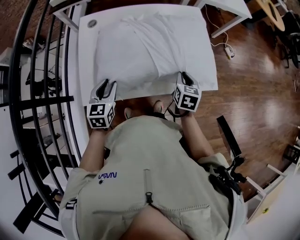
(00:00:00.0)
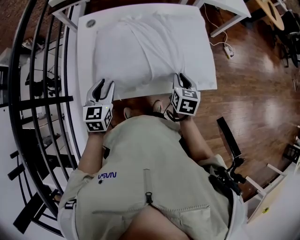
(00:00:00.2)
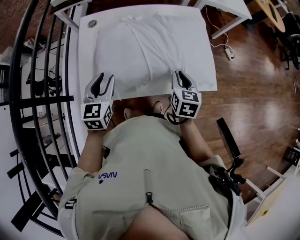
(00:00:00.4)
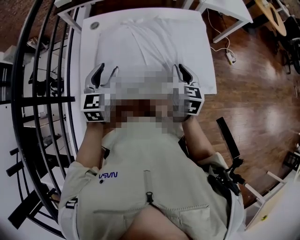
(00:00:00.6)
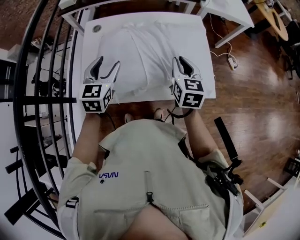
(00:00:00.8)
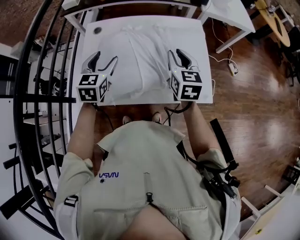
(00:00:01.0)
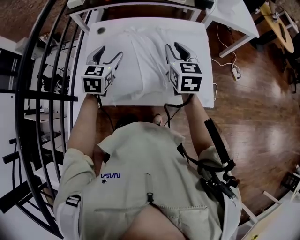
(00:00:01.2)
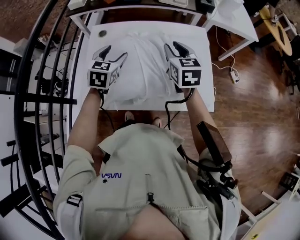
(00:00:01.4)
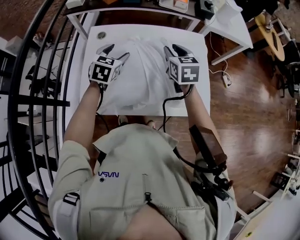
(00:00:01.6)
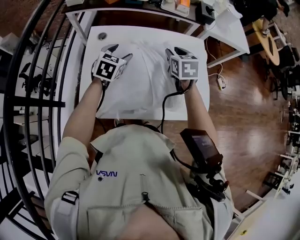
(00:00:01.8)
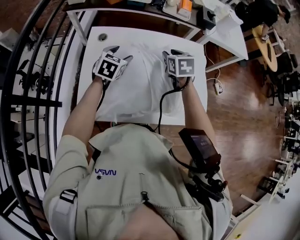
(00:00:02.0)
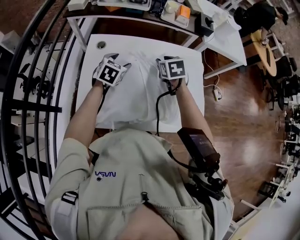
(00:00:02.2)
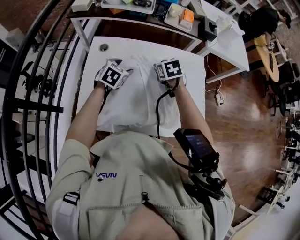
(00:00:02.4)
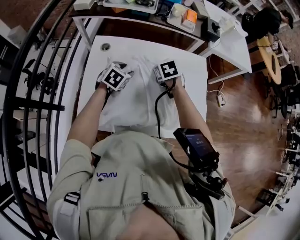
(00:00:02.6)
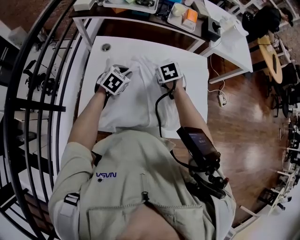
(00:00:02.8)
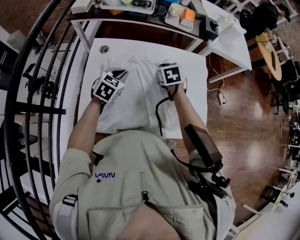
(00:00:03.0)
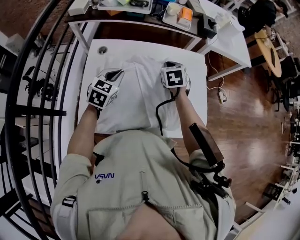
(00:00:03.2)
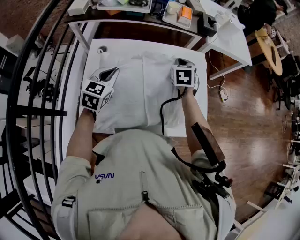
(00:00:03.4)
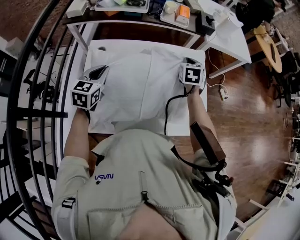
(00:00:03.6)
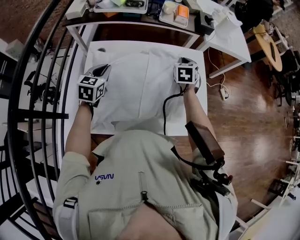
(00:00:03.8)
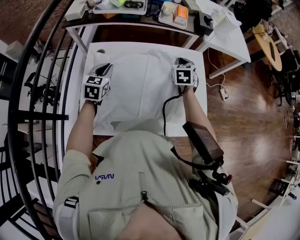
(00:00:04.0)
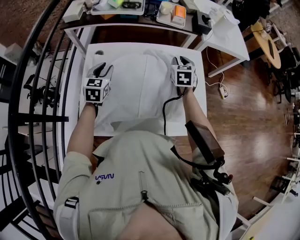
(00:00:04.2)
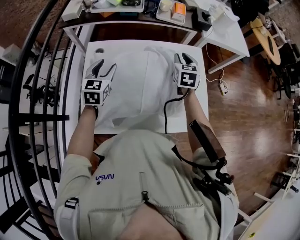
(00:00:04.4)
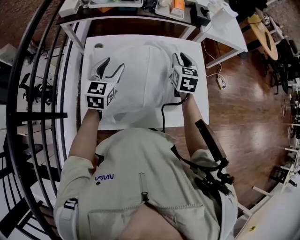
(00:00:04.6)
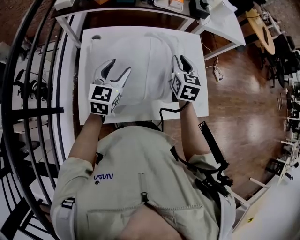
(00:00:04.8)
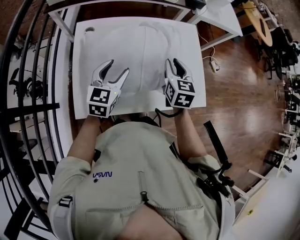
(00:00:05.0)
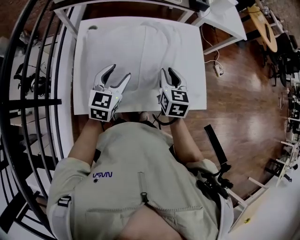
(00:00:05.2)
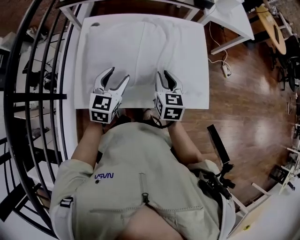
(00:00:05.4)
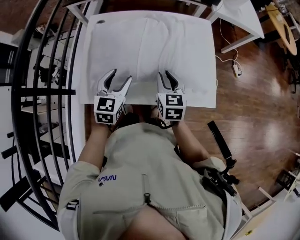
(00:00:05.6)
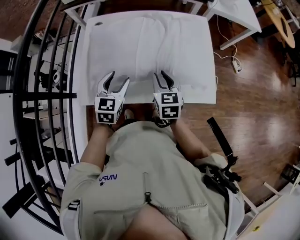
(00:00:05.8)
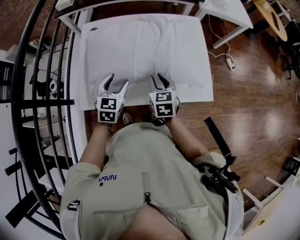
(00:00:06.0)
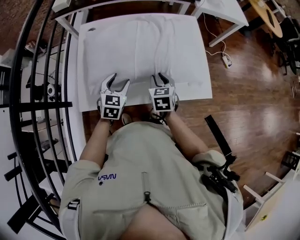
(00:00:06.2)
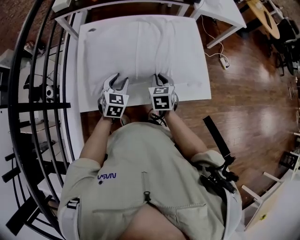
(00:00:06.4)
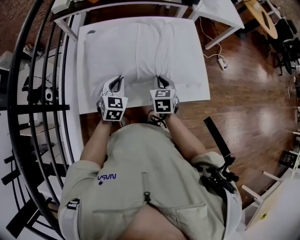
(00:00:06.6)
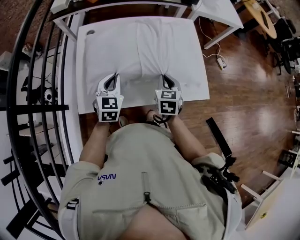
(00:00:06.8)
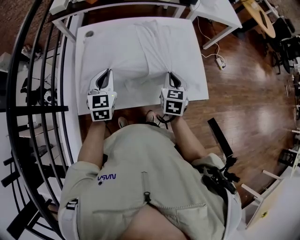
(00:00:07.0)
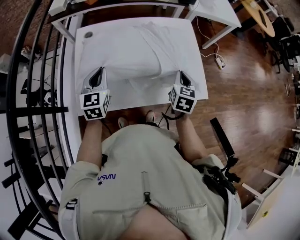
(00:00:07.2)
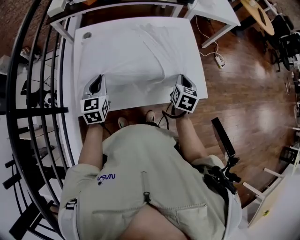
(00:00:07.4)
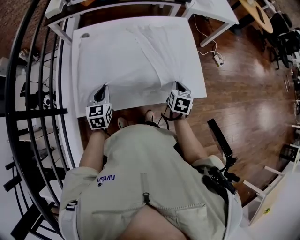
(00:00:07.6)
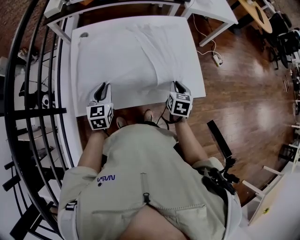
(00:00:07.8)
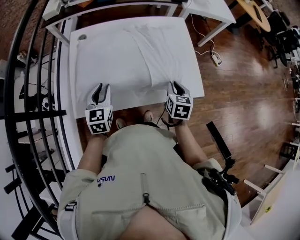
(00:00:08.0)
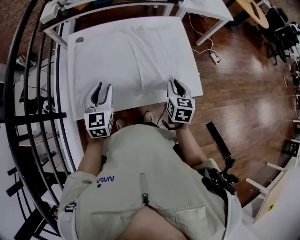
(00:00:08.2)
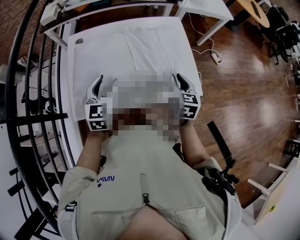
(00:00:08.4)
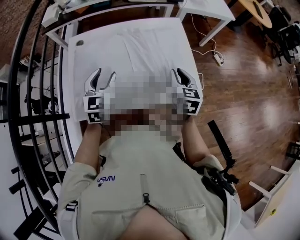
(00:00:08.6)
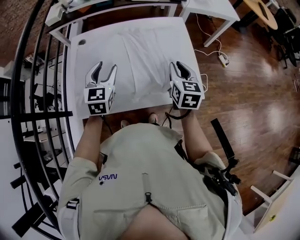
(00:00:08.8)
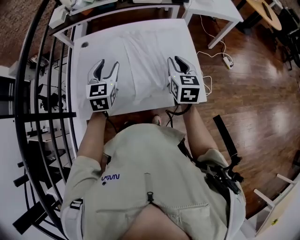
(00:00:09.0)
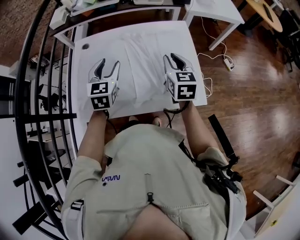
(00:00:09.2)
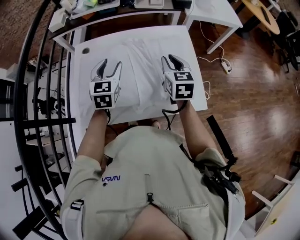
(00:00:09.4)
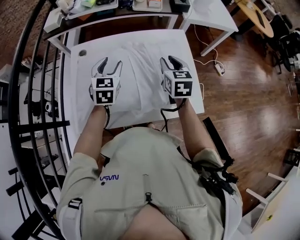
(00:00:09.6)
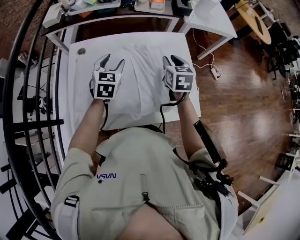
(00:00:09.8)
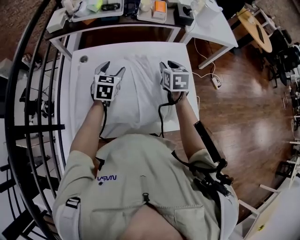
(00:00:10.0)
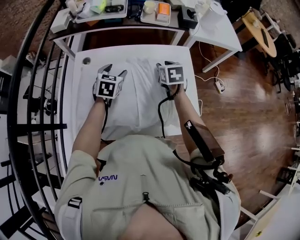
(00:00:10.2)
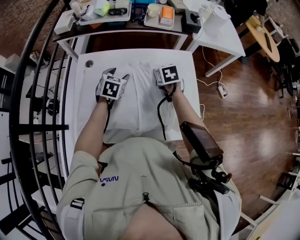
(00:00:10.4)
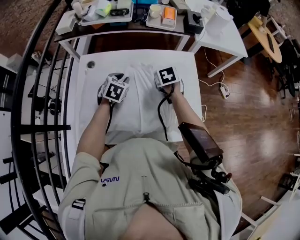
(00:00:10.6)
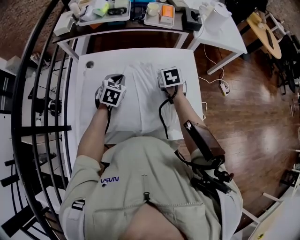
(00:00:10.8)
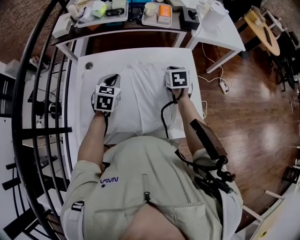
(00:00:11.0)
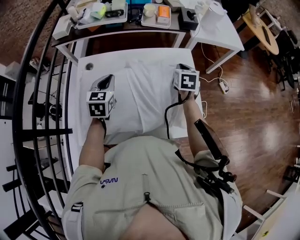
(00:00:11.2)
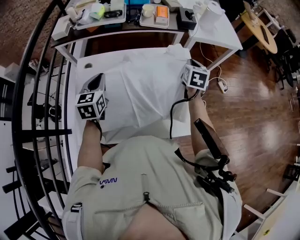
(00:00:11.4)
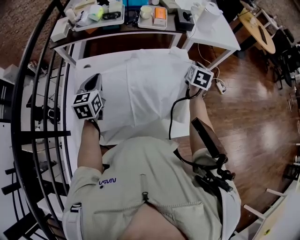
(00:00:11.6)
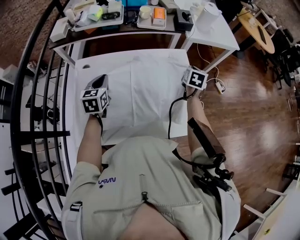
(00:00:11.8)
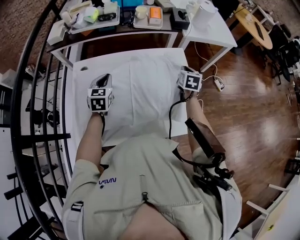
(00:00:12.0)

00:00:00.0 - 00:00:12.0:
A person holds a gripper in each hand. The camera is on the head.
00:00:00.0 - 00:00:01.6: The left gripper moves forward and upward, roughly 20 cm, and opens its fingers. The right gripper heads forward, upward and to the left, covering some 25 cm, and turns by roughly 30 degrees.
00:00:01.6 - 00:00:03.0: The right gripper goes roughly 10 cm downward and forward, rotates roughly 20 degrees, and closes up, while the left gripper closes its fingers.
00:00:03.0 - 00:00:04.4: The left gripper heads to the left and upward, covering some 10 cm, turns by approximately 20 degrees, and opens up; the right gripper heads to the right and upward, covering some 10 cm, turns by approximately 30 degrees, and opens up.
00:00:04.4 - 00:00:06.0: The left gripper shifts roughly 20 cm backward, to the right and downward; the right gripper heads backward, covering approximately 25 cm.
00:00:06.0 - 00:00:07.6: The right gripper shifts about 15 cm to the right, changes its angle by about 30 degrees, and closes, while the left gripper heads to the left, covering approximately 5 cm, moves roughly 5 cm upward and comes back, and closes.
00:00:07.6 - 00:00:09.0: The left gripper moves upward, forward and to the right, about 20 cm, and opens up. Meanwhile the right gripper heads upward and forward, covering roughly 15 cm, and rotates roughly 30 degrees.
00:00:09.0 - 00:00:10.4: The left gripper heads forward and downward, covering about 15 cm, and turns by roughly 20 degrees. Meanwhile the right gripper shifts roughly 20 cm forward, to the left and downward, and changes its angle by roughly 30 degrees.
00:00:10.4 - 00:00:12.0: The right gripper travels to the right by approximately 20 cm, turns by about 30 degrees, and closes. The left gripper travels upward and back again, roughly 10 cm each way, and closes its fingers.

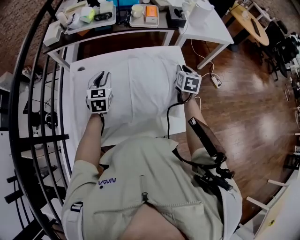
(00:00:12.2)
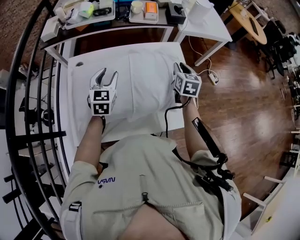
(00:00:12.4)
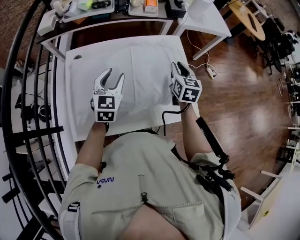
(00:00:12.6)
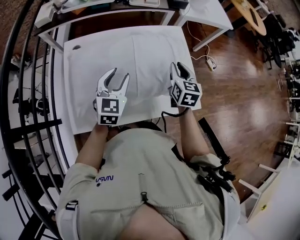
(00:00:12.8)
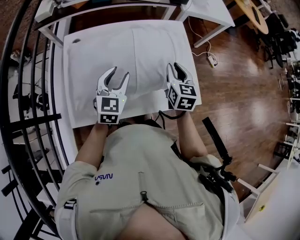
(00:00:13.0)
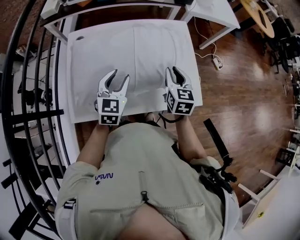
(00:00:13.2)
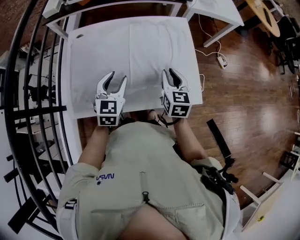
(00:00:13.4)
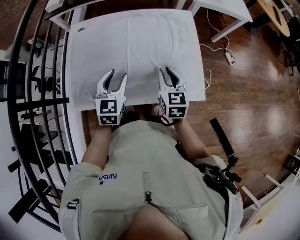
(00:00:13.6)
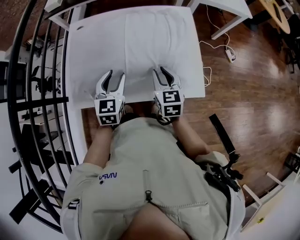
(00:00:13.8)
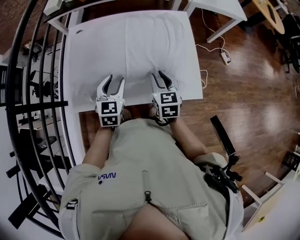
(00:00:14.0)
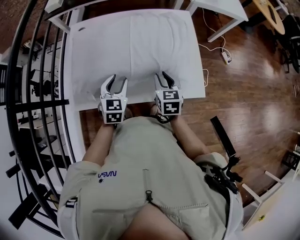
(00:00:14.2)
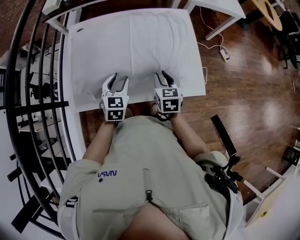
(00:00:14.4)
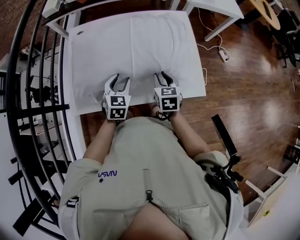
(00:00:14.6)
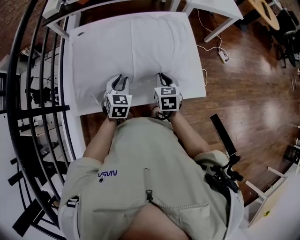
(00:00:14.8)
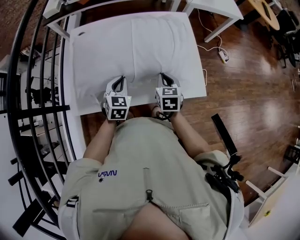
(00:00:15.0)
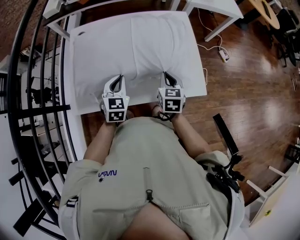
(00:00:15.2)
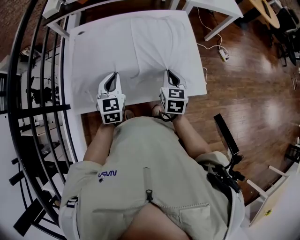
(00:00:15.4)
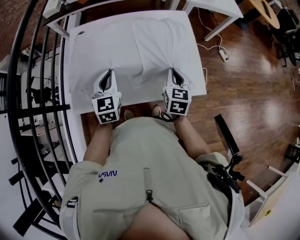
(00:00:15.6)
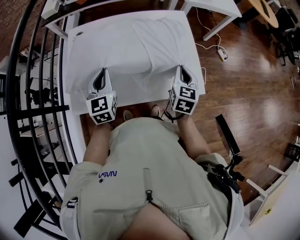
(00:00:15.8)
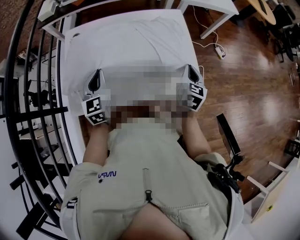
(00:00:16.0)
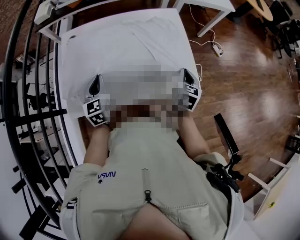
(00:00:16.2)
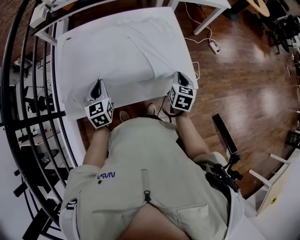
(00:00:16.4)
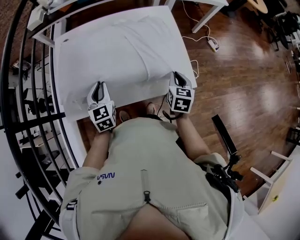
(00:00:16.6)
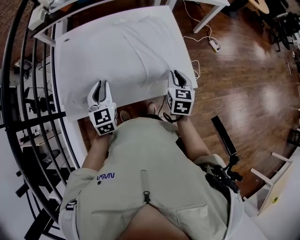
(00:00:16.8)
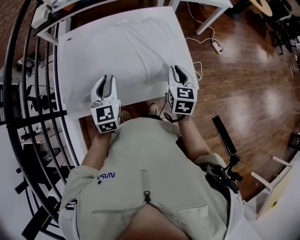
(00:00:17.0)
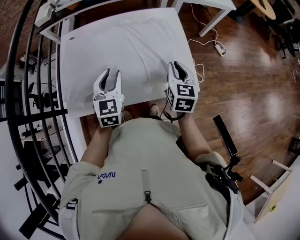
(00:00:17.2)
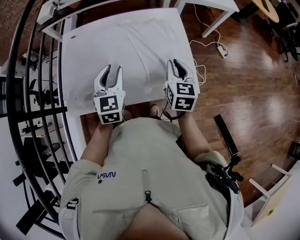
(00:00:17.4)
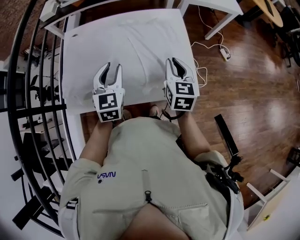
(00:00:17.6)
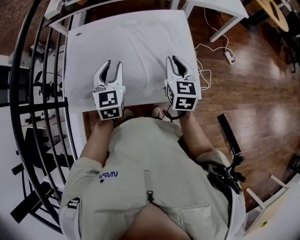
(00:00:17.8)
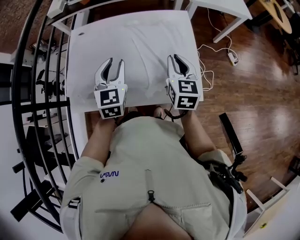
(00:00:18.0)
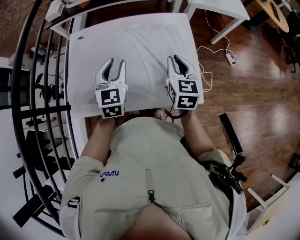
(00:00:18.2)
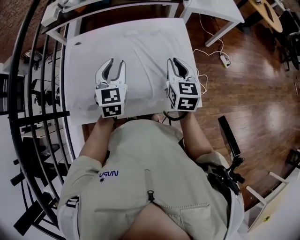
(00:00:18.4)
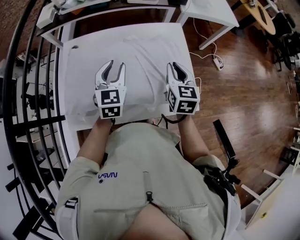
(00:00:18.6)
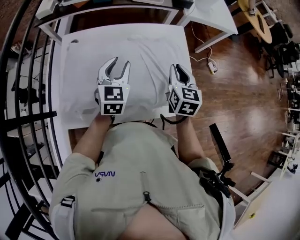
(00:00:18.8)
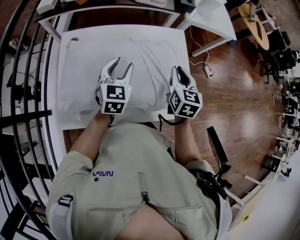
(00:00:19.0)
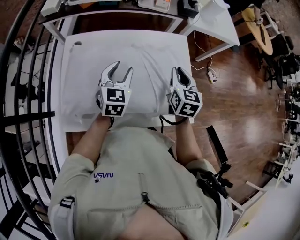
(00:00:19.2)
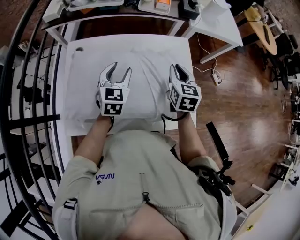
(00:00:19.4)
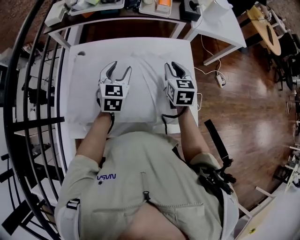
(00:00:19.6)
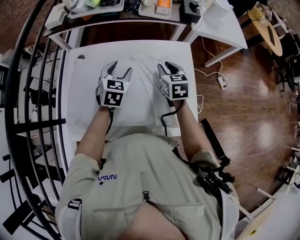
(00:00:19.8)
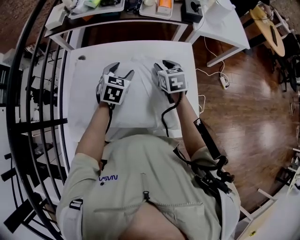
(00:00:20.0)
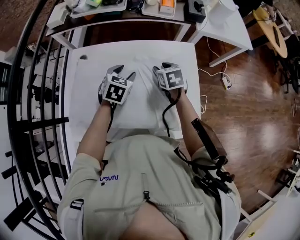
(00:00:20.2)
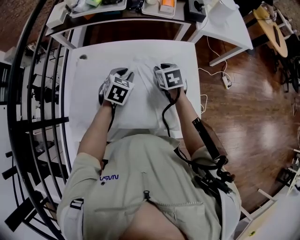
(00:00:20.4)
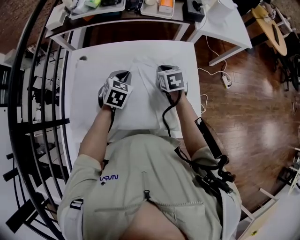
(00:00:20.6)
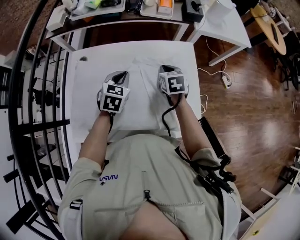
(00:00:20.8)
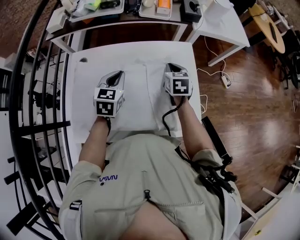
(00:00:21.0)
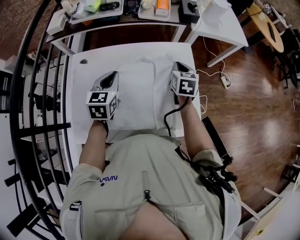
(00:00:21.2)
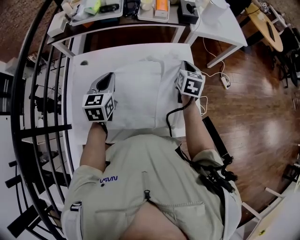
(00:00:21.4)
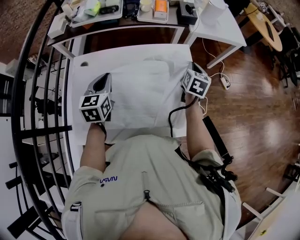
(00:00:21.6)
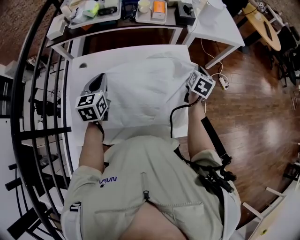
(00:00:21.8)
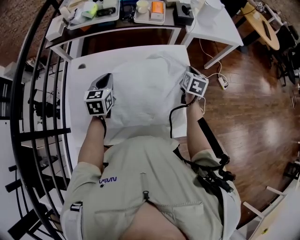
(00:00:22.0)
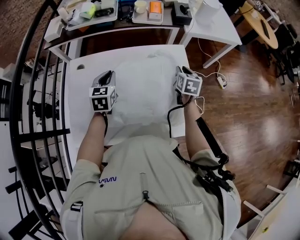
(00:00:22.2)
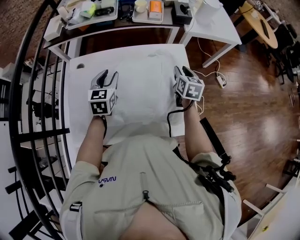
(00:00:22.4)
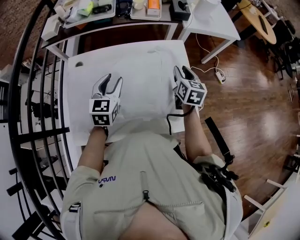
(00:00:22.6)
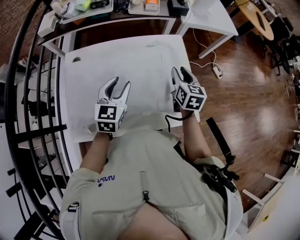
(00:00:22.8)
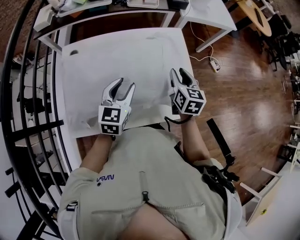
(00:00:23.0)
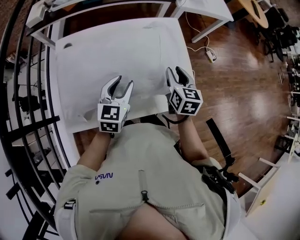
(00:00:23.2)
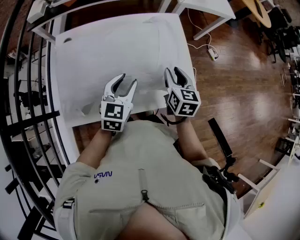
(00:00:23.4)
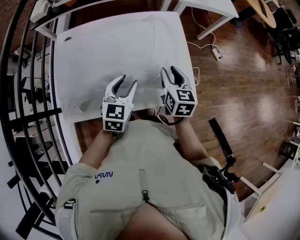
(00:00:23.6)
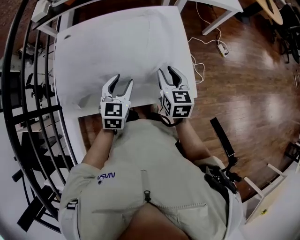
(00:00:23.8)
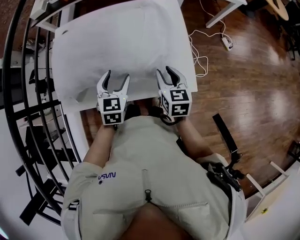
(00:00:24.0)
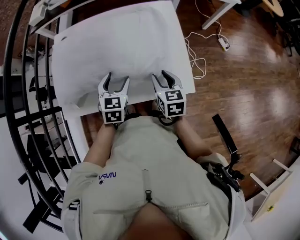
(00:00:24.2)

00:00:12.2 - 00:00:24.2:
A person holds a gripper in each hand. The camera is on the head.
00:00:12.2 - 00:00:13.8: The right gripper travels backward and to the left by approximately 25 cm, and rotates about 20 degrees. Meanwhile the left gripper is displaced backward and to the right by roughly 20 cm, and opens its fingers.
00:00:13.8 - 00:00:15.2: The left gripper closes its fingers. The right gripper closes.
00:00:15.2 - 00:00:16.6: The right gripper heads to the right, covering some 10 cm.
00:00:16.6 - 00:00:18.2: The right gripper is displaced upward, forward and to the left by roughly 15 cm, and changes its angle by approximately 20 degrees, while the left gripper moves upward, forward and to the right, roughly 15 cm.
00:00:18.2 - 00:00:19.8: The left gripper goes roughly 15 cm forward, and opens up. The right gripper moves forward and to the left, about 15 cm.
00:00:19.8 - 00:00:21.2: The right gripper shifts roughly 5 cm to the right, and closes its fingers, while the left gripper shifts by roughly 5 cm, and closes its fingers.
00:00:21.2 - 00:00:22.6: The left gripper opens. Meanwhile the right gripper goes to the right and returns, about 10 cm each way, and opens.
00:00:22.6 - 00:00:24.2: The right gripper travels backward and downward by about 20 cm. The left gripper is displaced backward, downward and to the right by about 20 cm, and opens its fingers.
